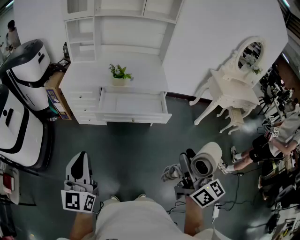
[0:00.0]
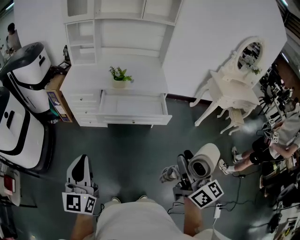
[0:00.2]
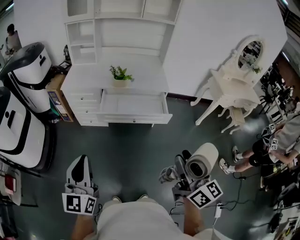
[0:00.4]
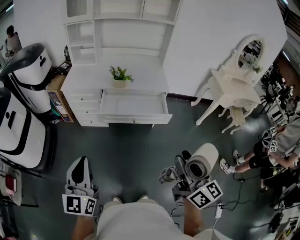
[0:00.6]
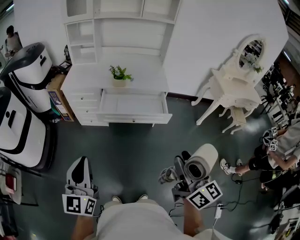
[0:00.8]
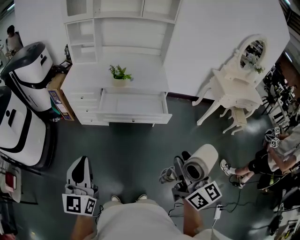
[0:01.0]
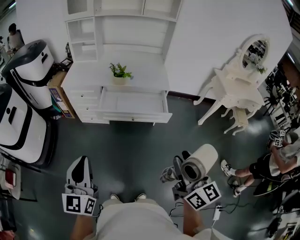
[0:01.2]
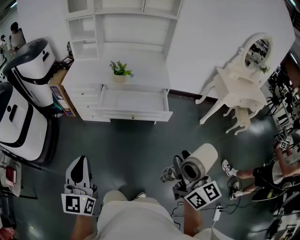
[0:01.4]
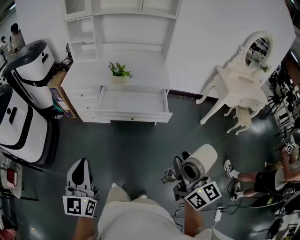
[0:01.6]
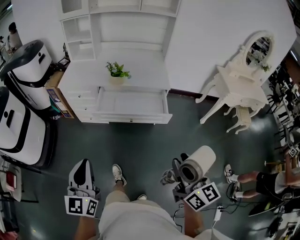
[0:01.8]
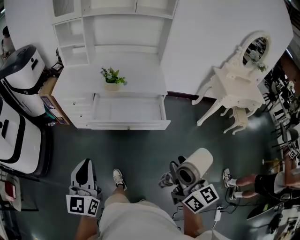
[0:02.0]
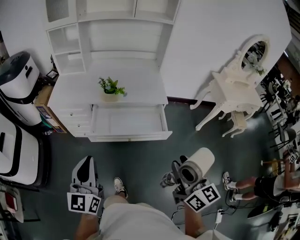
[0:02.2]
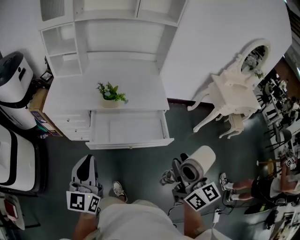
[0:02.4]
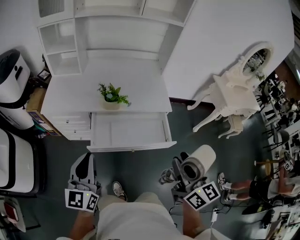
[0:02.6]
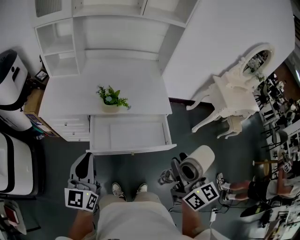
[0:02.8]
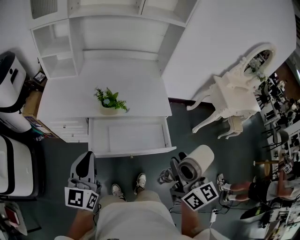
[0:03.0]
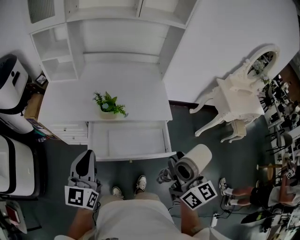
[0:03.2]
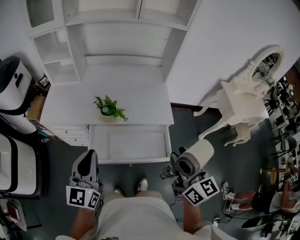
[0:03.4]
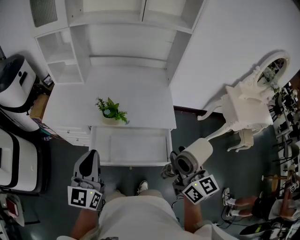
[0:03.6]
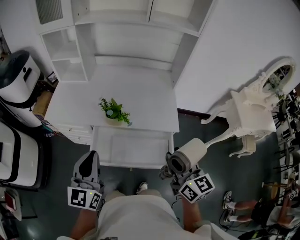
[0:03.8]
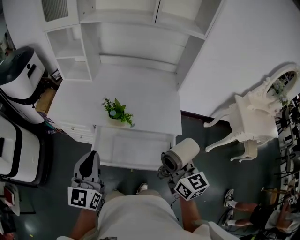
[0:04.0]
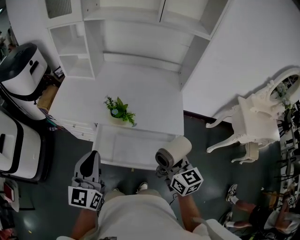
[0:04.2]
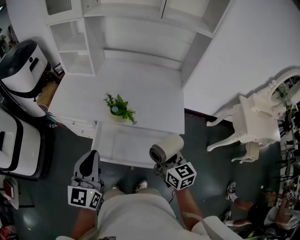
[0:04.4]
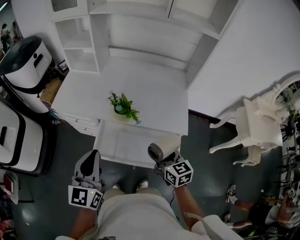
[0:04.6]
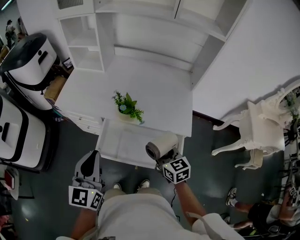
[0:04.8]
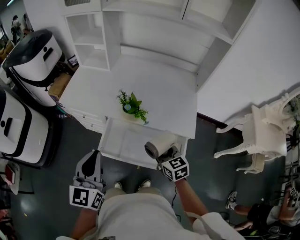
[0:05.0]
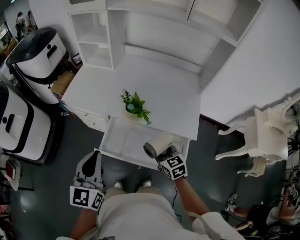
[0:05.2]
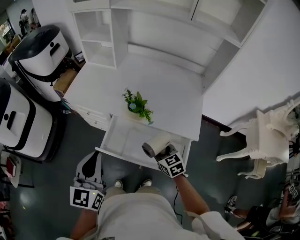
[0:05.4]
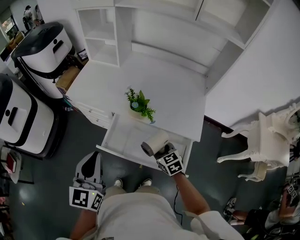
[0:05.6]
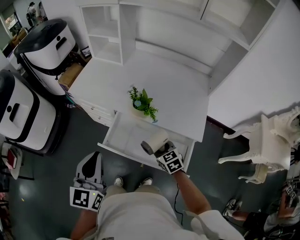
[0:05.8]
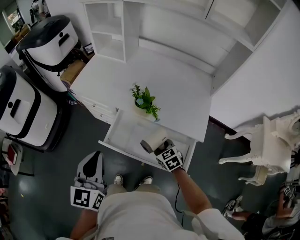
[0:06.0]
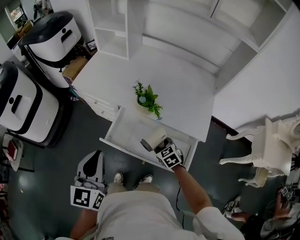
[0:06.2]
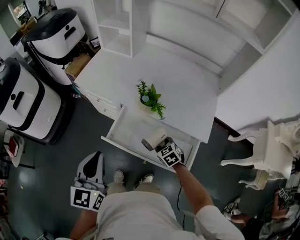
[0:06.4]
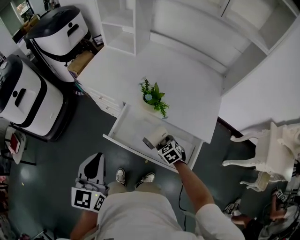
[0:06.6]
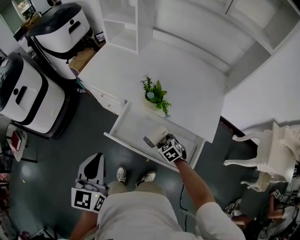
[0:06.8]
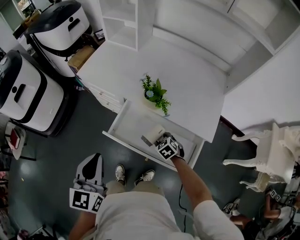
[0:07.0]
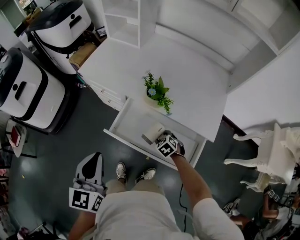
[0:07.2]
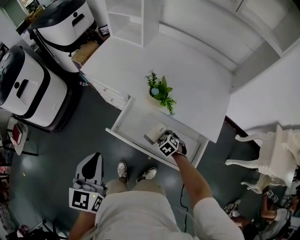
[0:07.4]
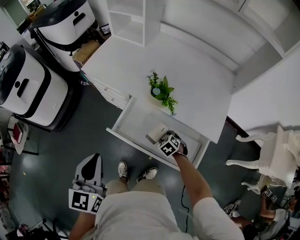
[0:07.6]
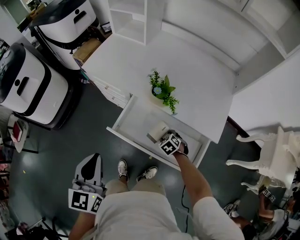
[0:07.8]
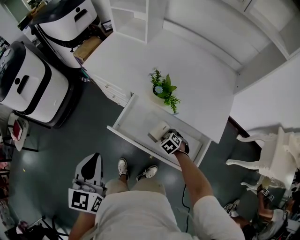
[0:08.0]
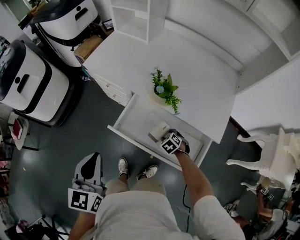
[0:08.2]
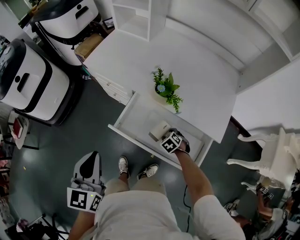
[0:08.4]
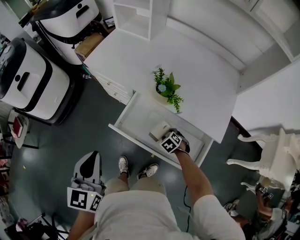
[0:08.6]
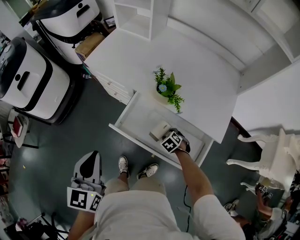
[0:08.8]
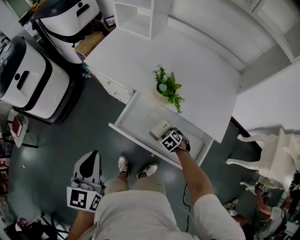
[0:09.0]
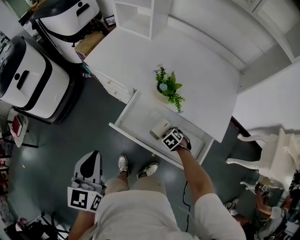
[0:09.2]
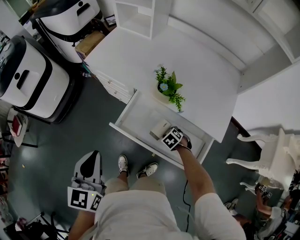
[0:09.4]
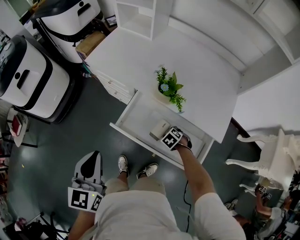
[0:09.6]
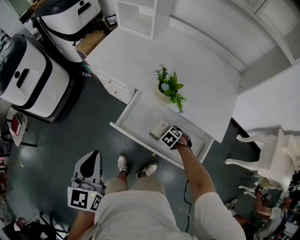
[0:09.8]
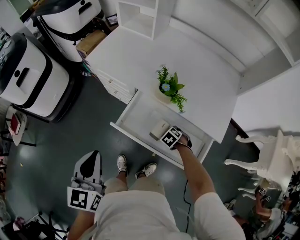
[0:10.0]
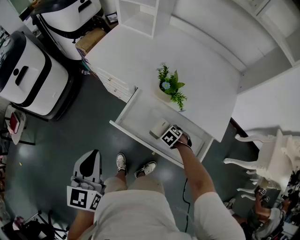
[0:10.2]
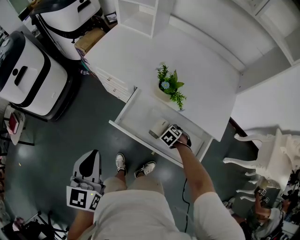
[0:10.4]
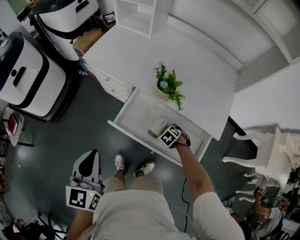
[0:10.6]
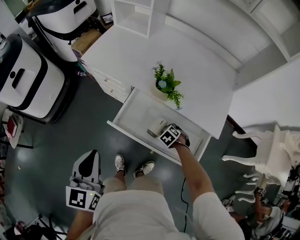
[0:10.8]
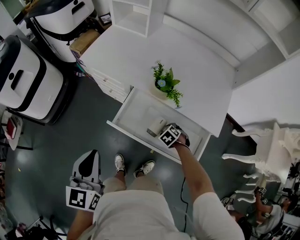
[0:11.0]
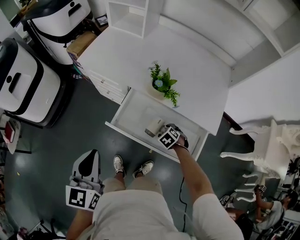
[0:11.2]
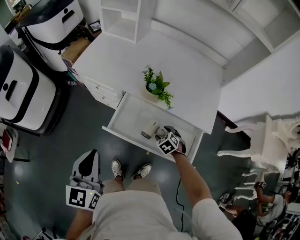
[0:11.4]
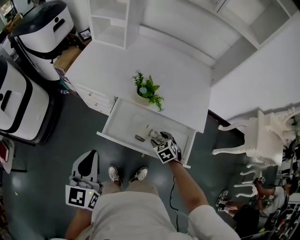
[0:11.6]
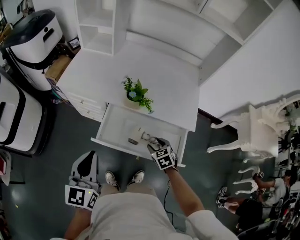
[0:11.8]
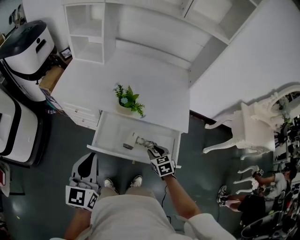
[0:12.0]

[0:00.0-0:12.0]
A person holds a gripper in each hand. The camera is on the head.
0:00.0 to 0:01.6: The right gripper moves some 5 cm; the left gripper shifts approximately 5 cm to the right.
0:01.6 to 0:03.0: The two grippers go about 35 cm forward.
0:03.0 to 0:04.4: The left gripper shifts roughly 10 cm to the right and forward. The right gripper heads forward and downward, covering some 20 cm, and turns by some 30 degrees.
0:04.4 to 0:06.0: The right gripper is displaced downward and forward by some 20 cm, and turns by approximately 40 degrees, while the left gripper moves roughly 5 cm.
0:06.0 to 0:07.6: The left gripper moves about 5 cm; the right gripper goes some 15 cm downward, and rotates roughly 30 degrees.
0:07.6 to 0:10.4: The grippers make only small movements.
0:10.4 to 0:12.0: The right gripper heads upward, covering about 15 cm, and tilts its fingers some 30 degrees upward; the left gripper moves approximately 5 cm, and rotates about 20 degrees.

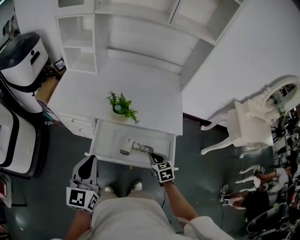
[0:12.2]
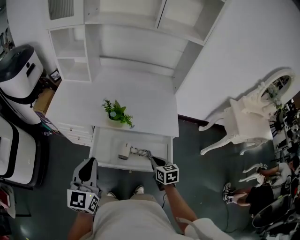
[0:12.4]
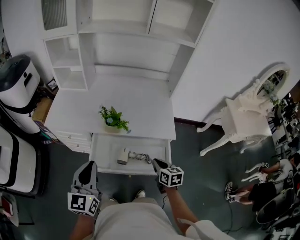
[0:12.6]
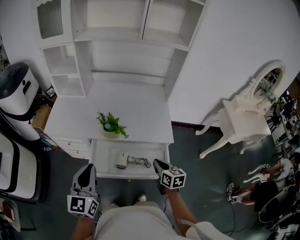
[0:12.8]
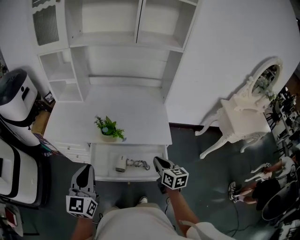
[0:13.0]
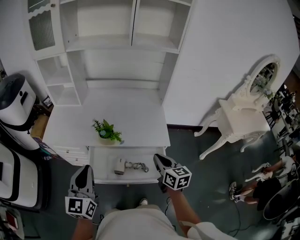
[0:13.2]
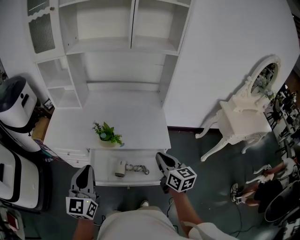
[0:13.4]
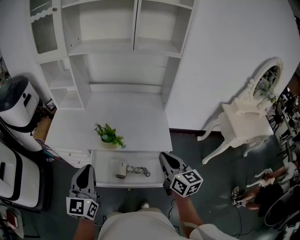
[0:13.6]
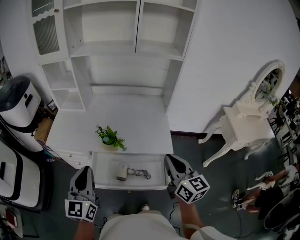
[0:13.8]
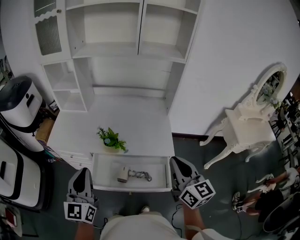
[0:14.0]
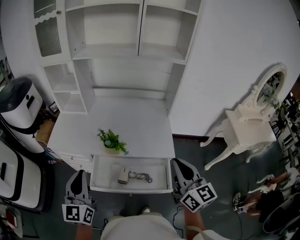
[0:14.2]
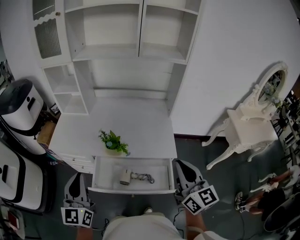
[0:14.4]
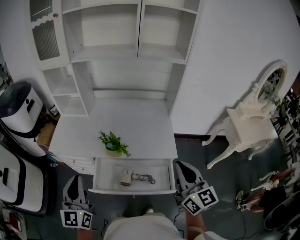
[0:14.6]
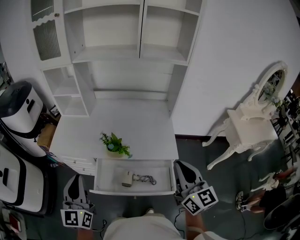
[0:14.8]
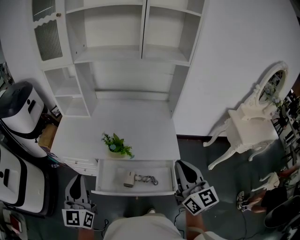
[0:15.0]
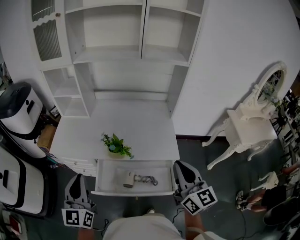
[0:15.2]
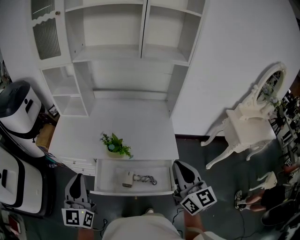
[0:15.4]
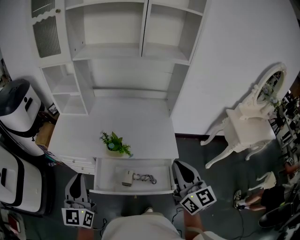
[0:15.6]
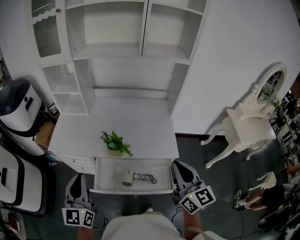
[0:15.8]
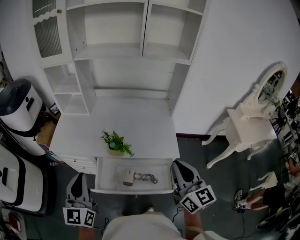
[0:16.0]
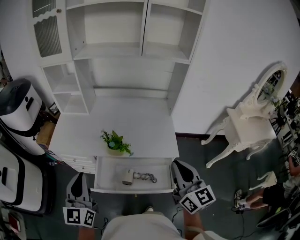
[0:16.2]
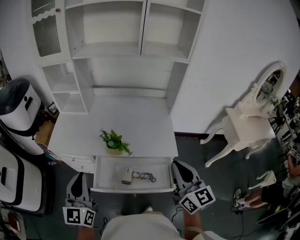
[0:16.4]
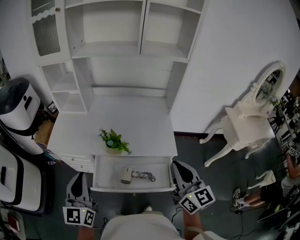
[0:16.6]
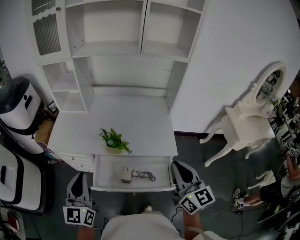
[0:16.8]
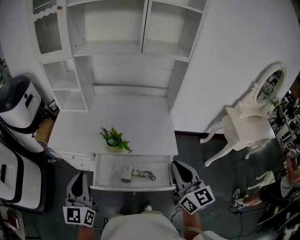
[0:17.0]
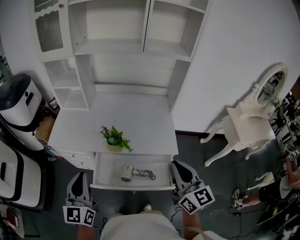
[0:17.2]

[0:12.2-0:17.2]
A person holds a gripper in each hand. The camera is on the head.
0:12.2 to 0:13.8: The right gripper is displaced upward by approximately 30 cm, and points its fingers about 40 degrees further upward; the left gripper goes about 10 cm upward.
0:13.8 to 0:15.6: The left gripper moves to the left, about 5 cm.
0:15.6 to 0:17.2: The grippers stay close to where they were, moving slightly.

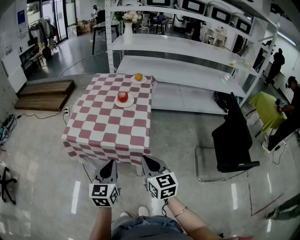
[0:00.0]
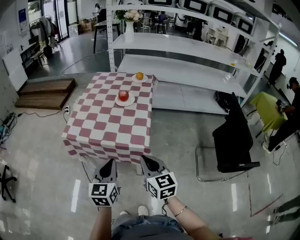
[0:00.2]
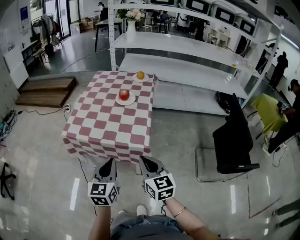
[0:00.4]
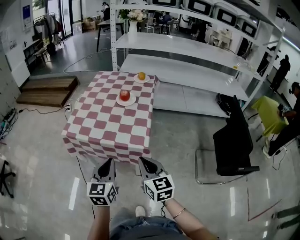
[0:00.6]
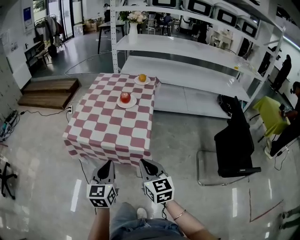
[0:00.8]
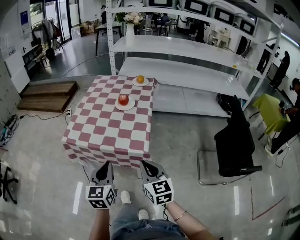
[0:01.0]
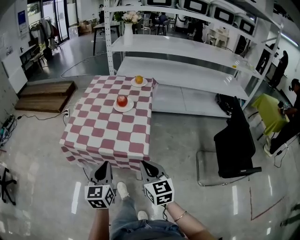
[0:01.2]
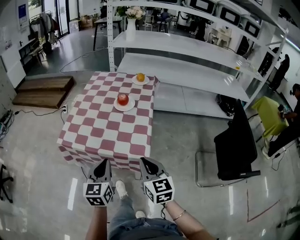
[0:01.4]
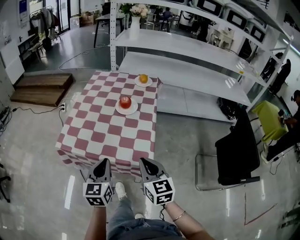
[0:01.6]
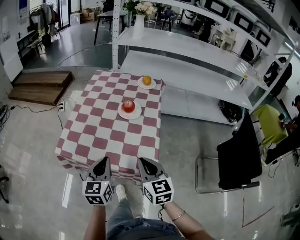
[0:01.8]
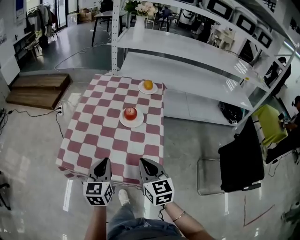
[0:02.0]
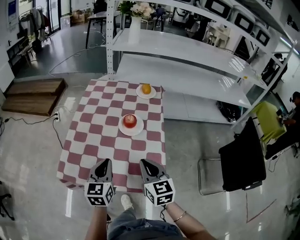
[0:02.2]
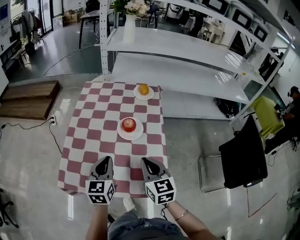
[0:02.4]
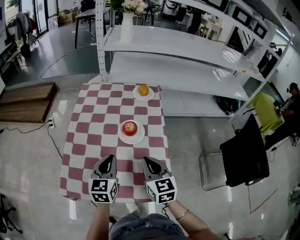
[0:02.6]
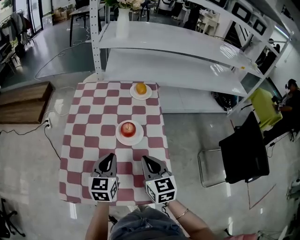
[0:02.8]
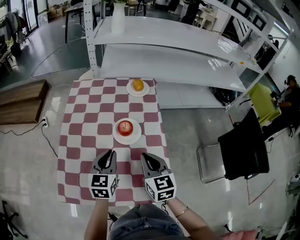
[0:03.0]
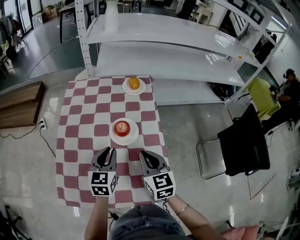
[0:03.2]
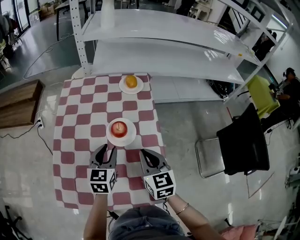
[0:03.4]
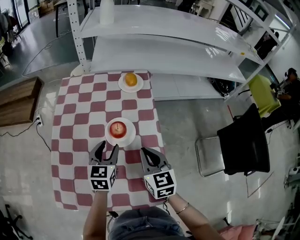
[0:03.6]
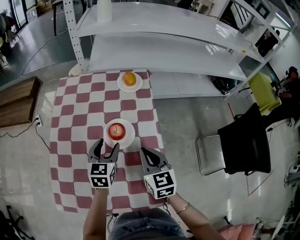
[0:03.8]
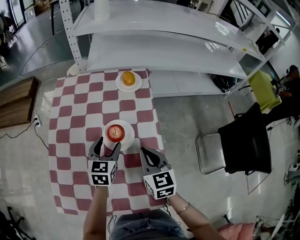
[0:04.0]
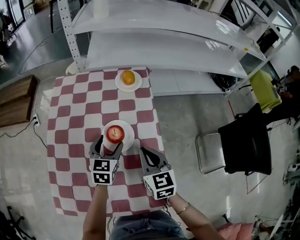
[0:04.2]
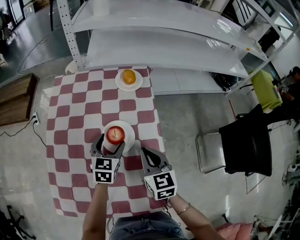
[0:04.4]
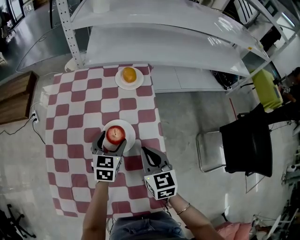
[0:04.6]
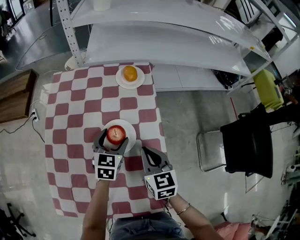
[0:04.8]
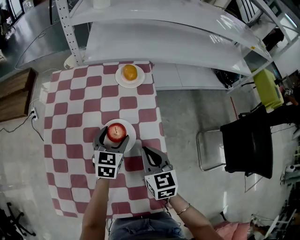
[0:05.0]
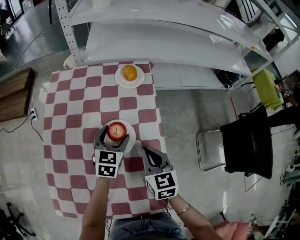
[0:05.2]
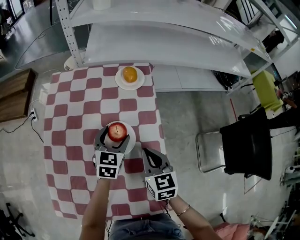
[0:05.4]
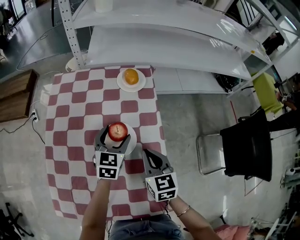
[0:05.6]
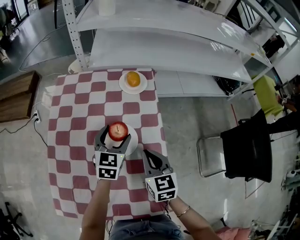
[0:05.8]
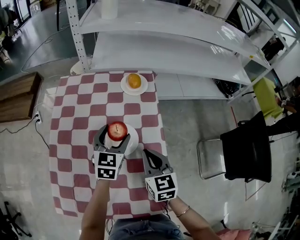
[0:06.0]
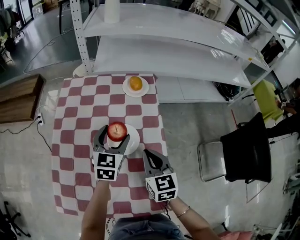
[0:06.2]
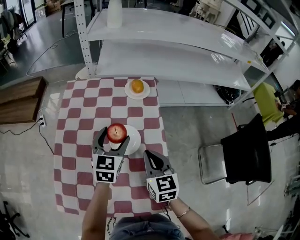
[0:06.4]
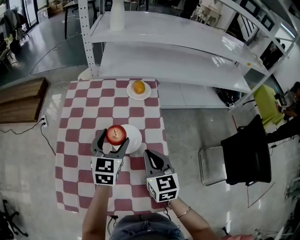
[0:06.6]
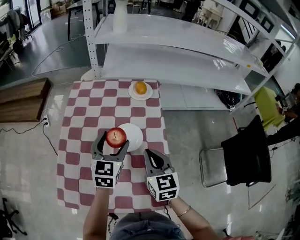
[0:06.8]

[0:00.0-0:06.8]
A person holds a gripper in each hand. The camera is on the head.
0:00.0 to 0:01.4: The grippers both shift forward by some 10 cm.
0:01.4 to 0:02.8: Both grippers travel together forward, approximately 35 cm.
0:02.8 to 0:04.0: The right gripper shifts some 10 cm forward. Meanwhile the left gripper is displaced forward, downward and to the right by roughly 15 cm, and opens up.
0:04.0 to 0:05.4: The left gripper is displaced forward by some 5 cm.
0:05.4 to 0:06.8: The left gripper goes about 15 cm upward and backward. Meanwhile the right gripper shifts roughly 10 cm upward and backward.
